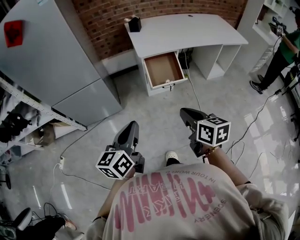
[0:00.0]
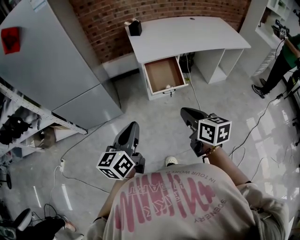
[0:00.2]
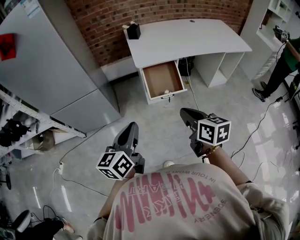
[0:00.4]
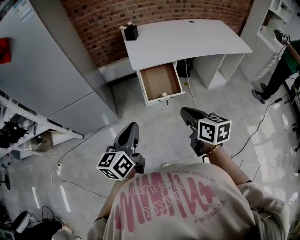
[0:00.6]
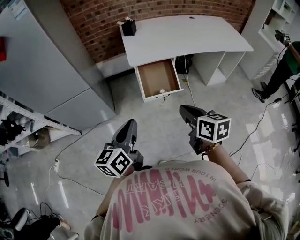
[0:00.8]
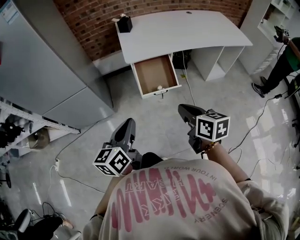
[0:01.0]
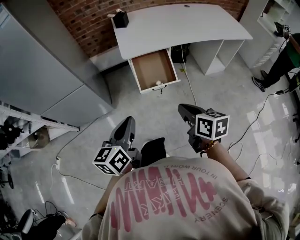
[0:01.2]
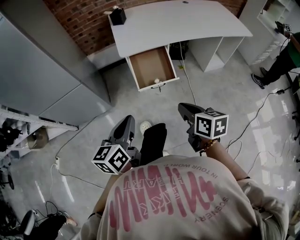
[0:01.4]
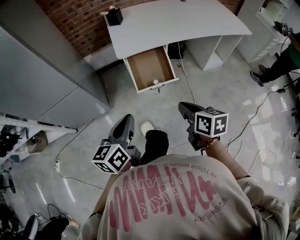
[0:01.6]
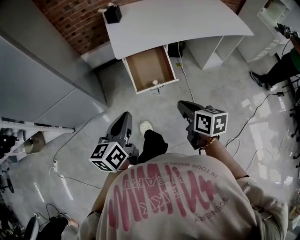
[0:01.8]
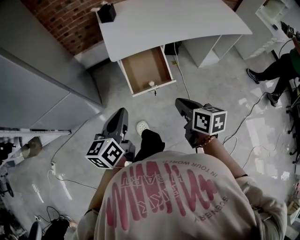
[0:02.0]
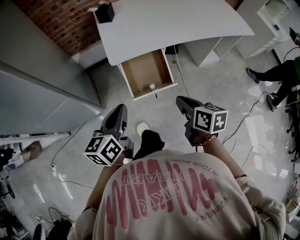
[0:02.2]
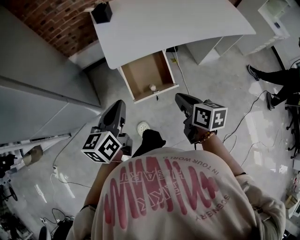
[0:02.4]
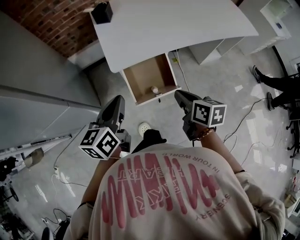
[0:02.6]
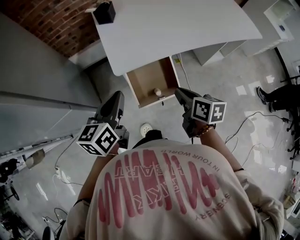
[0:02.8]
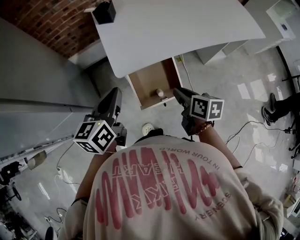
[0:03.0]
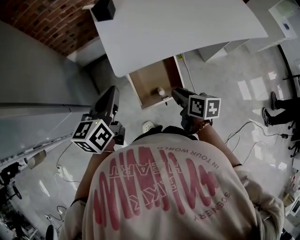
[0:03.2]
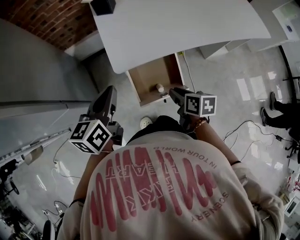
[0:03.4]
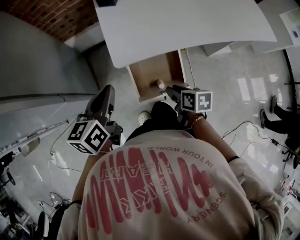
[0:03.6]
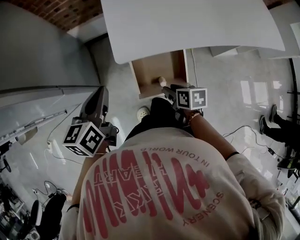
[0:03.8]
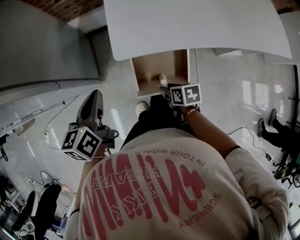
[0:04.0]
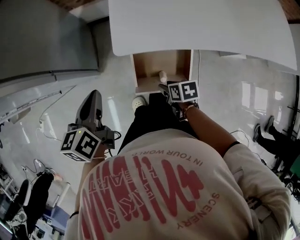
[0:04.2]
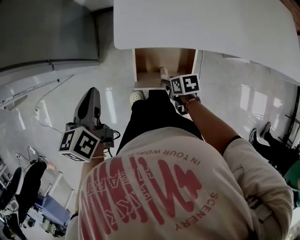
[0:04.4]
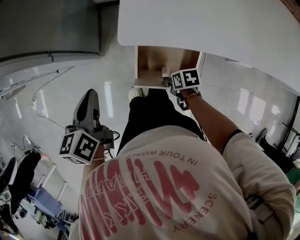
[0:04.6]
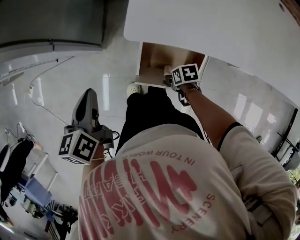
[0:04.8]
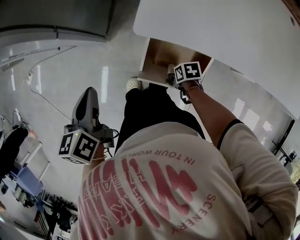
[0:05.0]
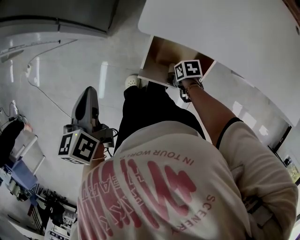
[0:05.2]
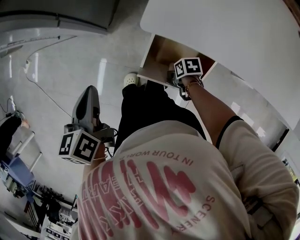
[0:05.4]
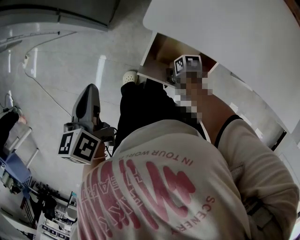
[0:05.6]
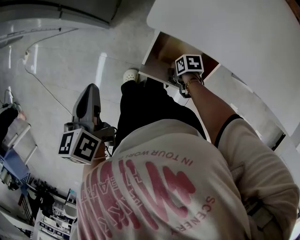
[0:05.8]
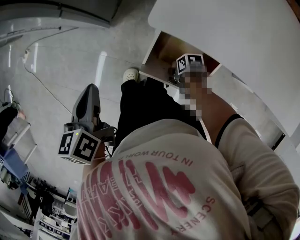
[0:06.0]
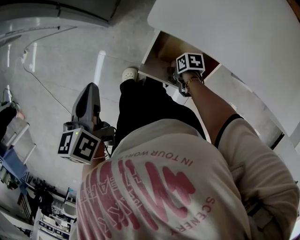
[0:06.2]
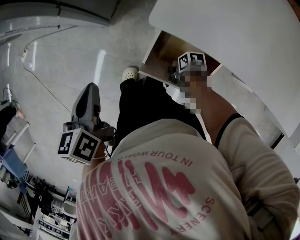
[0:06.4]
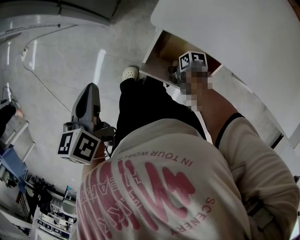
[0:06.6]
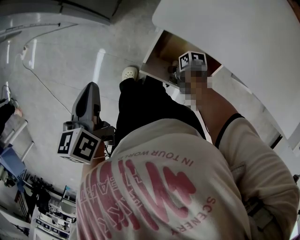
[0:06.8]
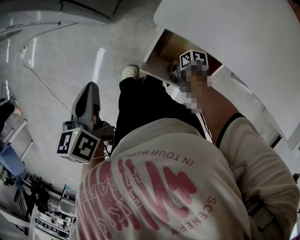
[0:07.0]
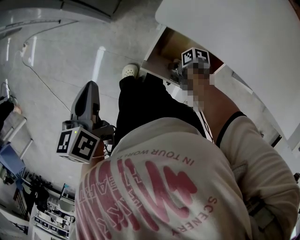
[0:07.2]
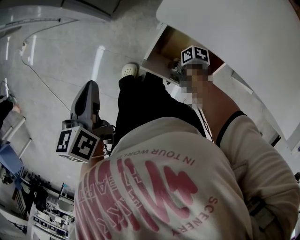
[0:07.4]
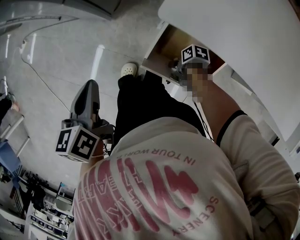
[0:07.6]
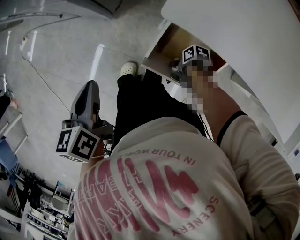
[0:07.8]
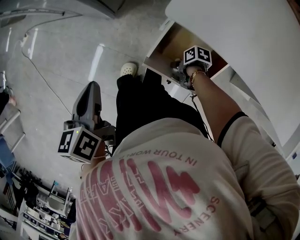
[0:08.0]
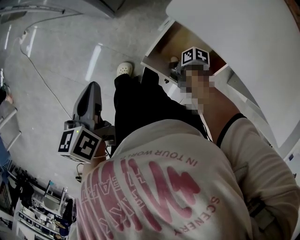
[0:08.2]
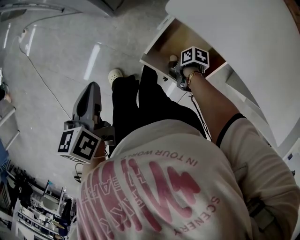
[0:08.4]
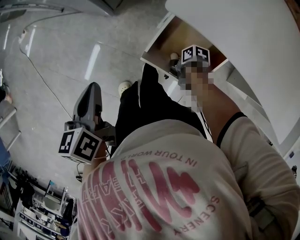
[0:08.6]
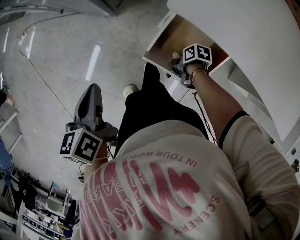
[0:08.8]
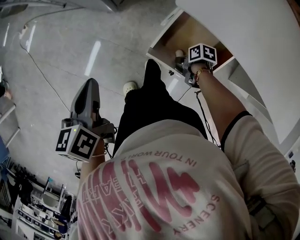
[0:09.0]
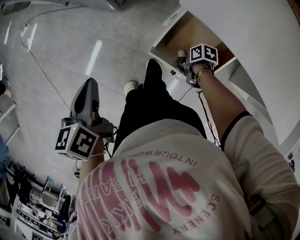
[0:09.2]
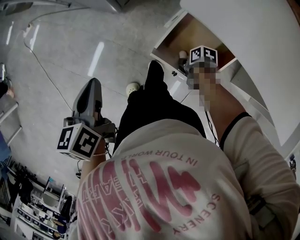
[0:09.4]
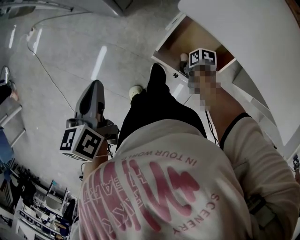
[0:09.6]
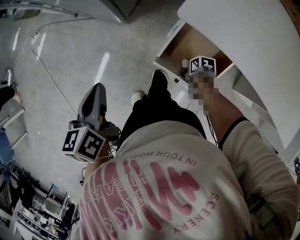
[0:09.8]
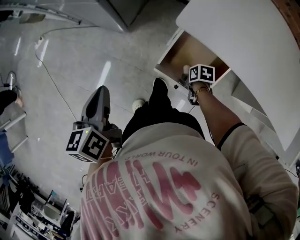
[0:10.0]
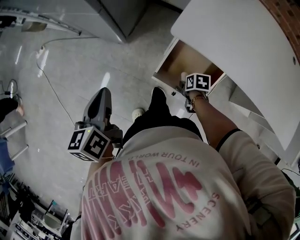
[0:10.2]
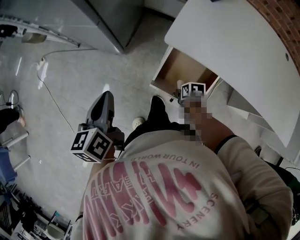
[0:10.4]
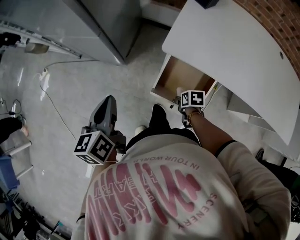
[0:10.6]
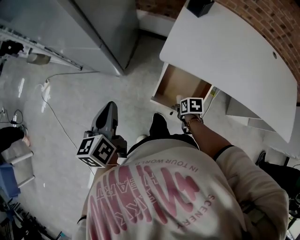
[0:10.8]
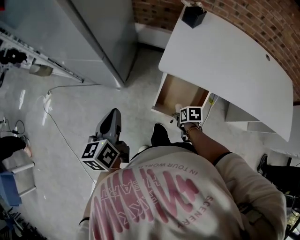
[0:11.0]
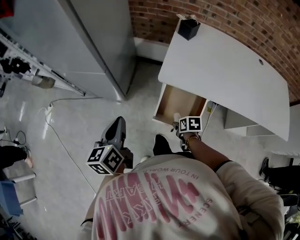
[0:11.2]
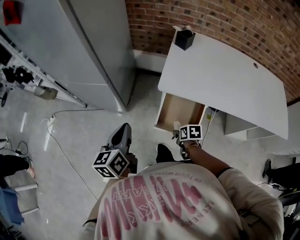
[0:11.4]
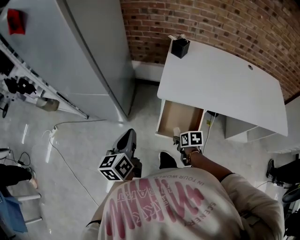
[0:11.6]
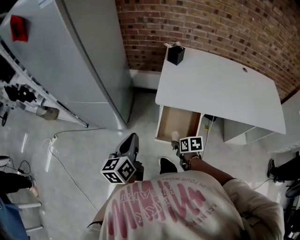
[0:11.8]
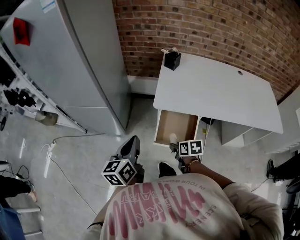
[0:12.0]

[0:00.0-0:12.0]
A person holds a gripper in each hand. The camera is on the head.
0:00.0 to 0:01.6: The right gripper shifts roughly 20 cm forward, to the right and downward. The left gripper moves forward and to the right, approximately 20 cm.
0:01.6 to 0:03.0: Both grippers move forward, some 25 cm.
0:03.0 to 0:04.4: The left gripper is displaced downward by roughly 10 cm, and swivels roughly 40 degrees; the right gripper goes roughly 25 cm downward, turns by some 50 degrees, and opens its fingers.
0:04.4 to 0:06.0: The right gripper goes about 10 cm downward, and rotates approximately 30 degrees. The left gripper changes place by approximately 10 cm, and turns by roughly 20 degrees.
0:06.0 to 0:07.6: The grippers move only a little.
0:07.6 to 0:09.0: The left gripper moves to the left, approximately 5 cm.
0:09.0 to 0:10.4: The two grippers go some 5 cm upward. The right gripper rotates roughly 20 degrees.
0:10.4 to 0:12.0: The right gripper goes about 20 cm upward, and changes its angle by some 30 degrees, while the left gripper shifts some 10 cm upward, and changes its angle by roughly 30 degrees.

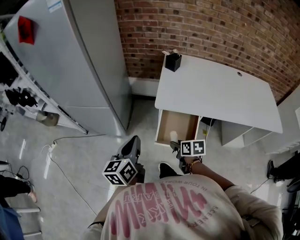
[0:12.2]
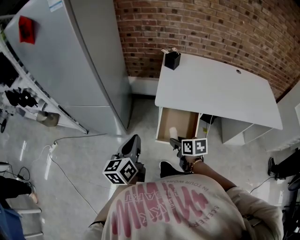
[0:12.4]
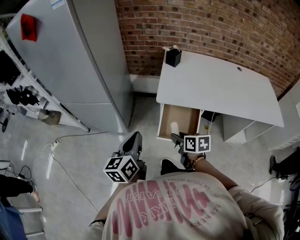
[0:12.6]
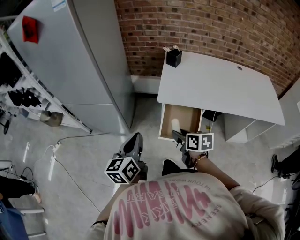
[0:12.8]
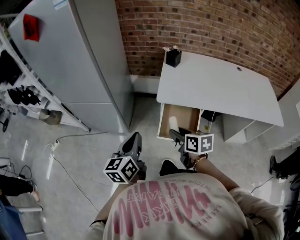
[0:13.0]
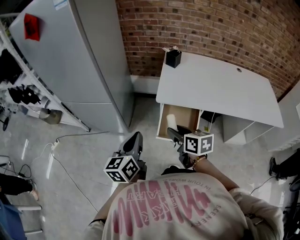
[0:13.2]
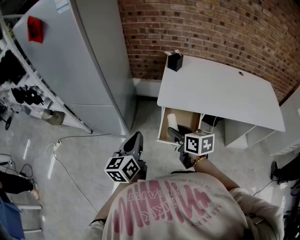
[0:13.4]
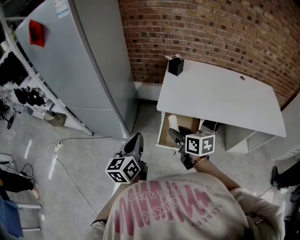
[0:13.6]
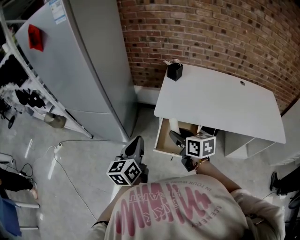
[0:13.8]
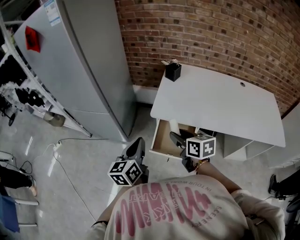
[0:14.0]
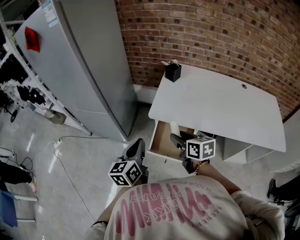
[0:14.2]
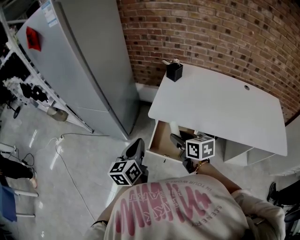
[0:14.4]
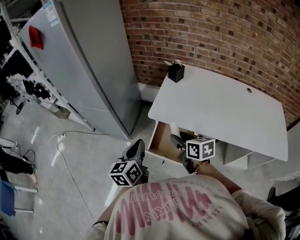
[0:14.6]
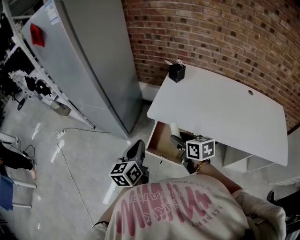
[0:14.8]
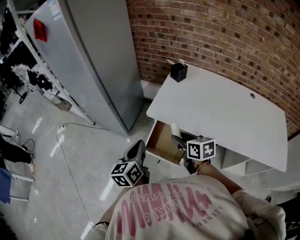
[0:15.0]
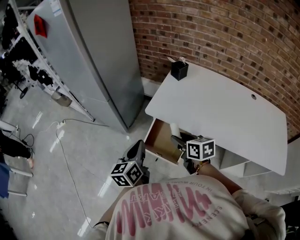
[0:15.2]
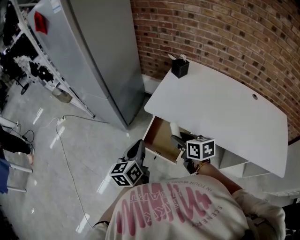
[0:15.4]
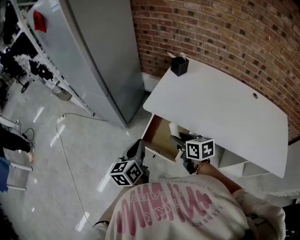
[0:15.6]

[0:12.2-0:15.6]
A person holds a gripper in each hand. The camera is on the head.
0:12.2 to 0:13.8: The right gripper heads upward, covering approximately 15 cm, and turns by some 20 degrees, while the left gripper moves about 5 cm.
0:13.8 to 0:15.6: The grippers both shift to the right and downward by about 15 cm.

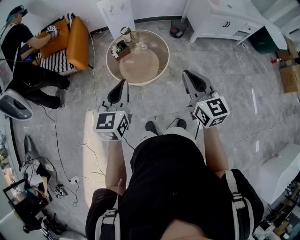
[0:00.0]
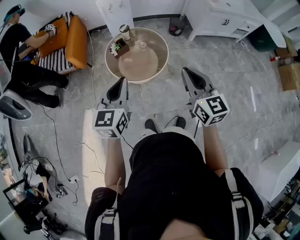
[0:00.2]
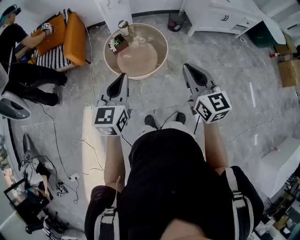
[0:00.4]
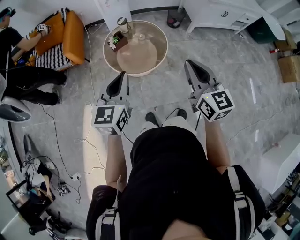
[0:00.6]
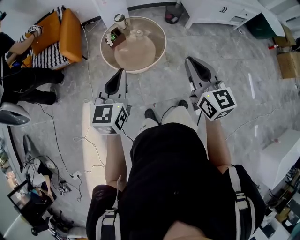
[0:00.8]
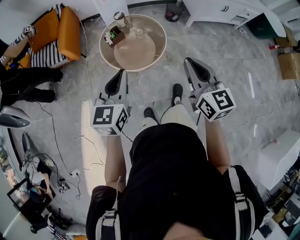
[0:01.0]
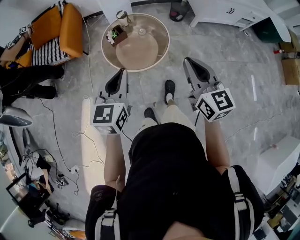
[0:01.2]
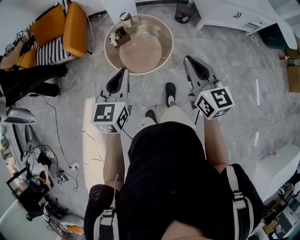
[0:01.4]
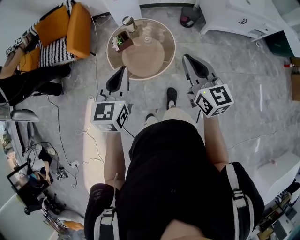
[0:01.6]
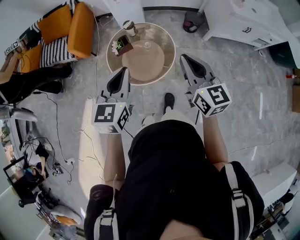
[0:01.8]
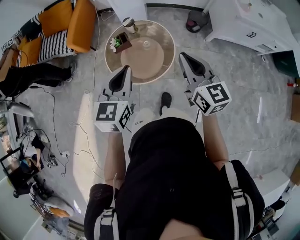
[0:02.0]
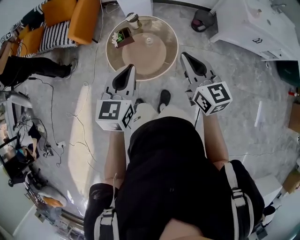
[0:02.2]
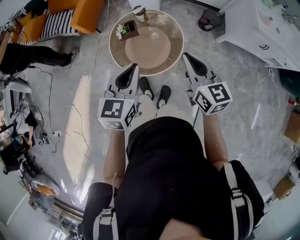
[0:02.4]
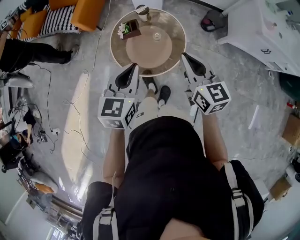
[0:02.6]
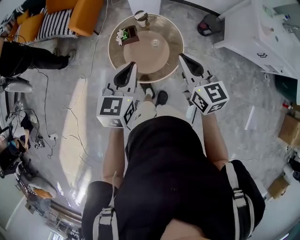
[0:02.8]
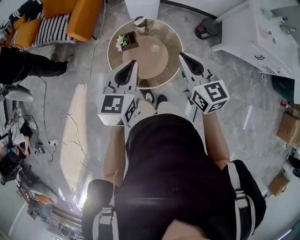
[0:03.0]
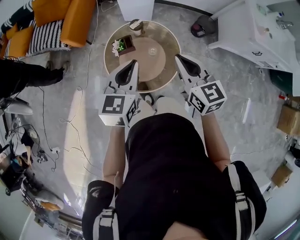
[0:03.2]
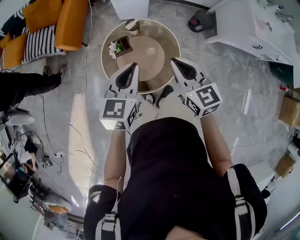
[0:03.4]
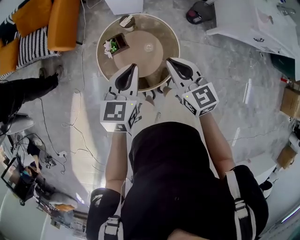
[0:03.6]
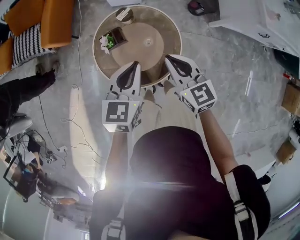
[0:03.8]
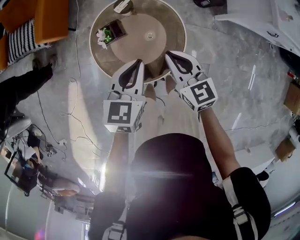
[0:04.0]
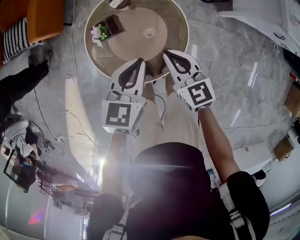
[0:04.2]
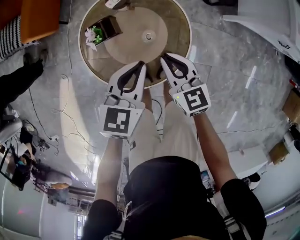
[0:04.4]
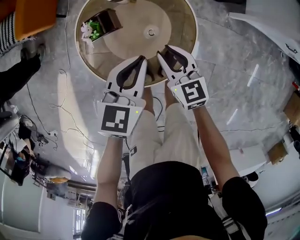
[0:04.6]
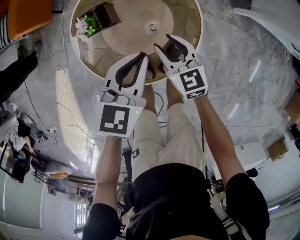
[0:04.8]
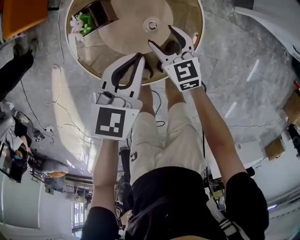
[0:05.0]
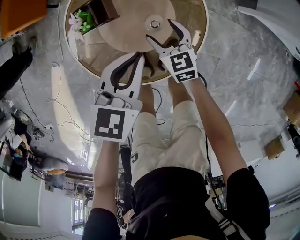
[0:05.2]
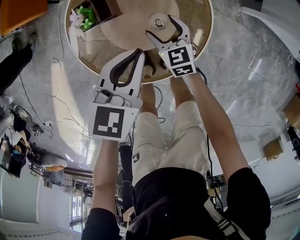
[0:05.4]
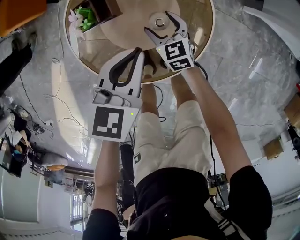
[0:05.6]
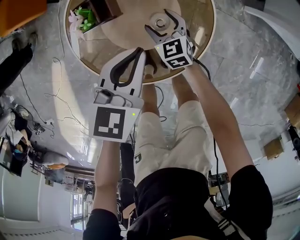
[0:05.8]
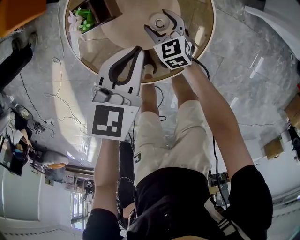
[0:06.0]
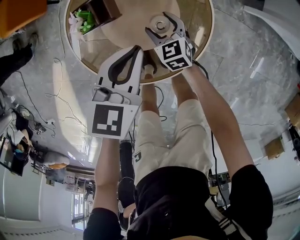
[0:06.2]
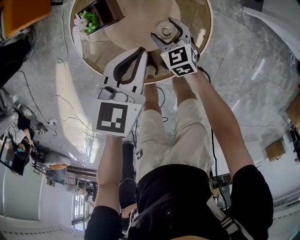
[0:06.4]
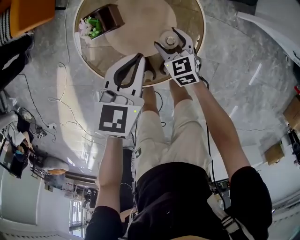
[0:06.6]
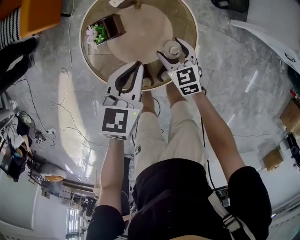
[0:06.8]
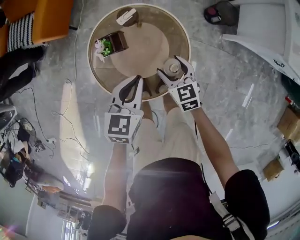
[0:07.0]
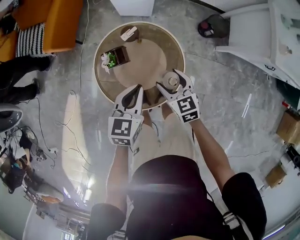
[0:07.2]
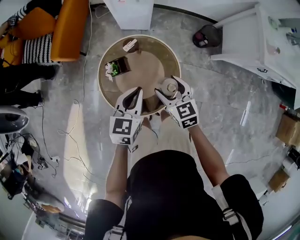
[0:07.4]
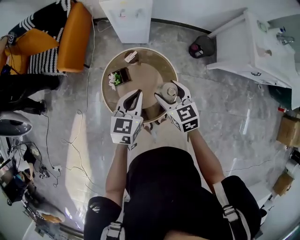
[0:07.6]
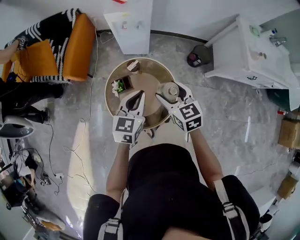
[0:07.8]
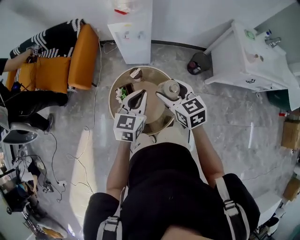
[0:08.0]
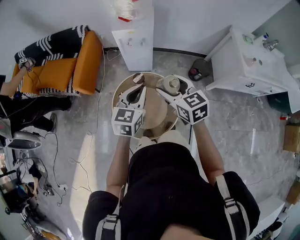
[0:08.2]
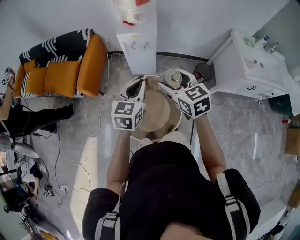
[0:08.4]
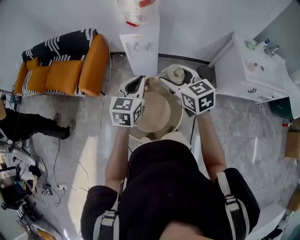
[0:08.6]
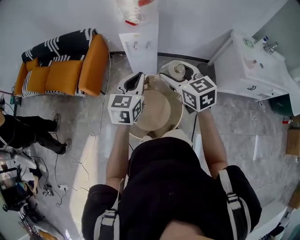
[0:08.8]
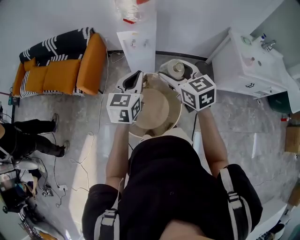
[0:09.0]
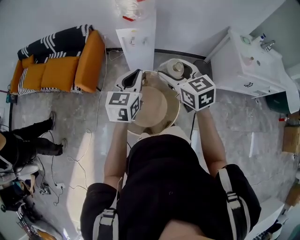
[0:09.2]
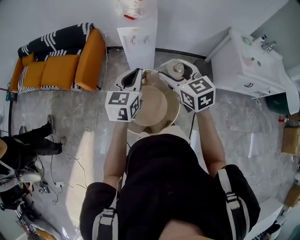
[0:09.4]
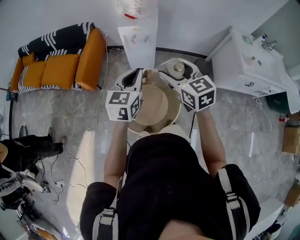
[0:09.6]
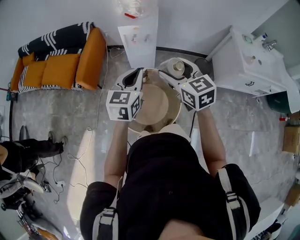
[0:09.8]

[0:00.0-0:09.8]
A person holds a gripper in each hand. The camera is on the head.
0:00.0 to 0:01.4: Both grippers move forward, roughly 10 cm.
0:01.4 to 0:02.8: The left gripper moves forward and to the right, about 20 cm; the right gripper travels forward by approximately 25 cm, and changes its angle by approximately 20 degrees.
0:02.8 to 0:04.2: Both grippers travel together downward and forward, some 25 cm.
0:04.2 to 0:05.6: The left gripper shifts roughly 15 cm downward; the right gripper shifts roughly 30 cm downward, and opens.
0:05.6 to 0:07.0: The left gripper moves upward, some 10 cm. The right gripper moves upward, roughly 20 cm.
0:07.0 to 0:08.4: Both grippers move upward, roughly 35 cm. The left gripper swivels some 20 degrees.
0:08.4 to 0:09.8: The grippers make only small movements.
